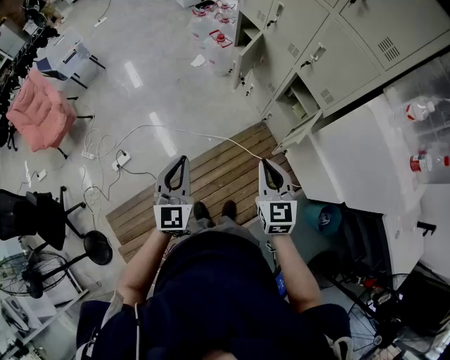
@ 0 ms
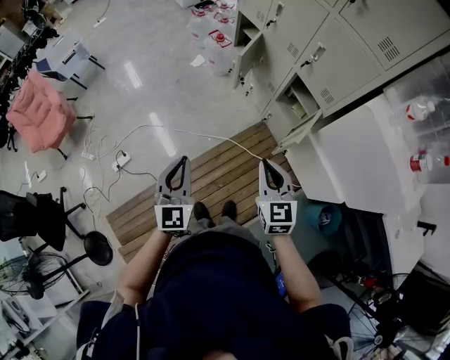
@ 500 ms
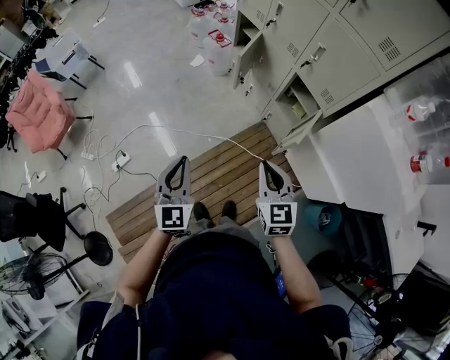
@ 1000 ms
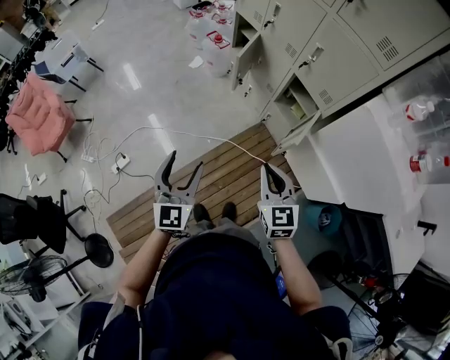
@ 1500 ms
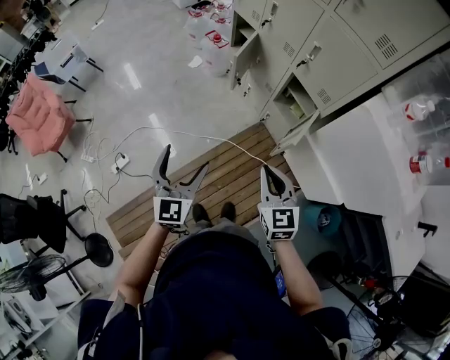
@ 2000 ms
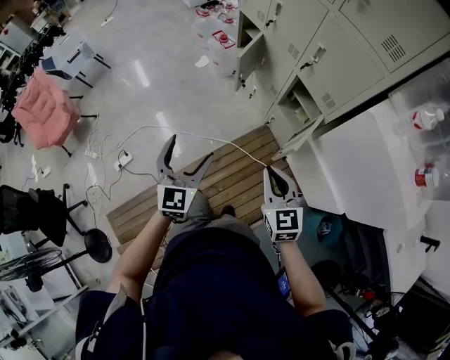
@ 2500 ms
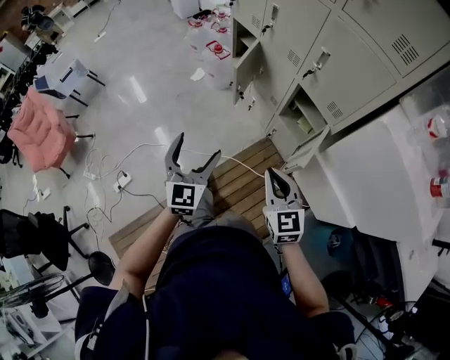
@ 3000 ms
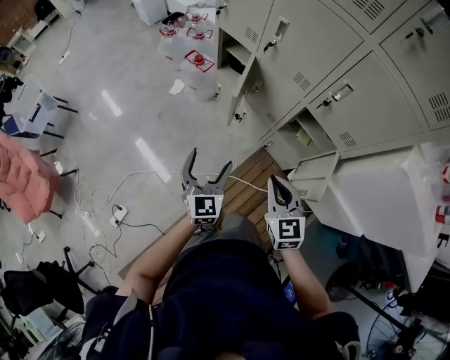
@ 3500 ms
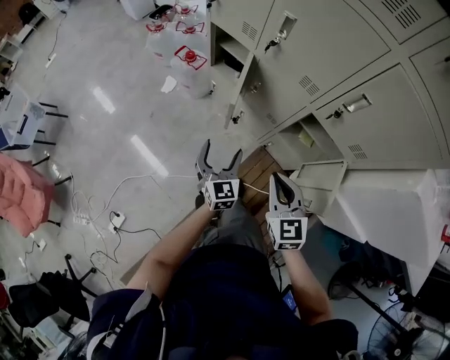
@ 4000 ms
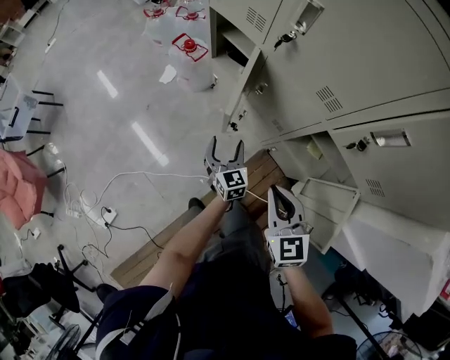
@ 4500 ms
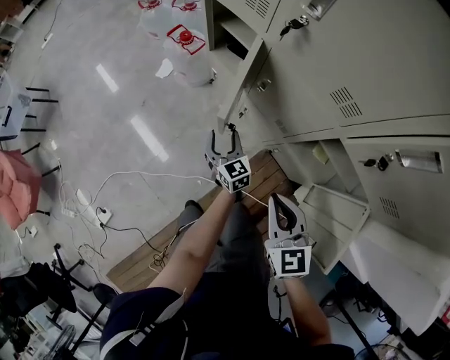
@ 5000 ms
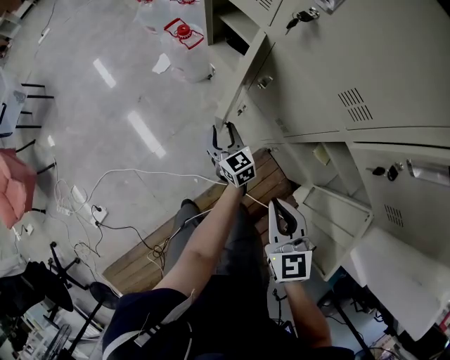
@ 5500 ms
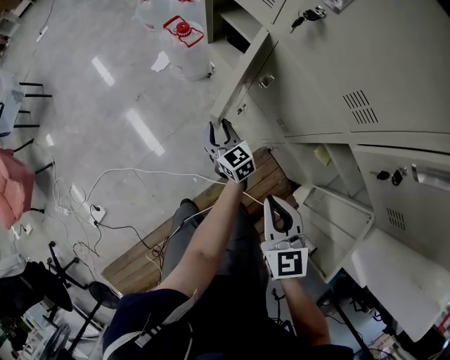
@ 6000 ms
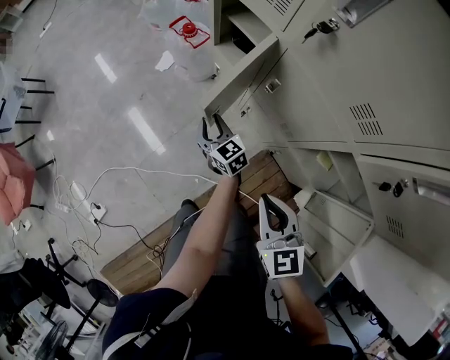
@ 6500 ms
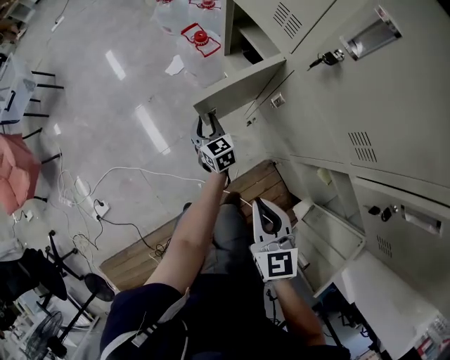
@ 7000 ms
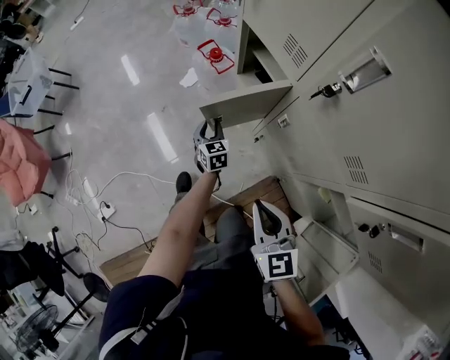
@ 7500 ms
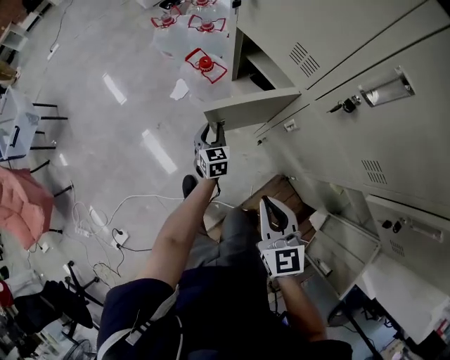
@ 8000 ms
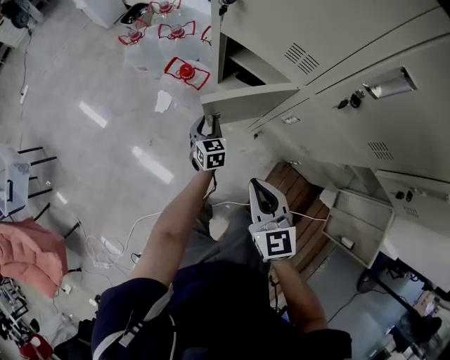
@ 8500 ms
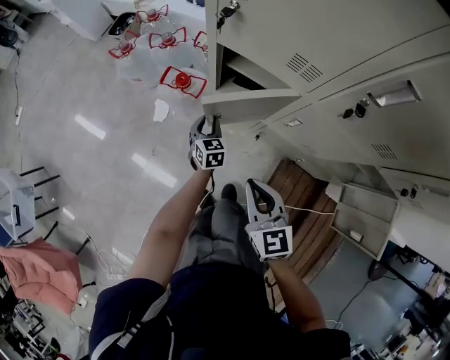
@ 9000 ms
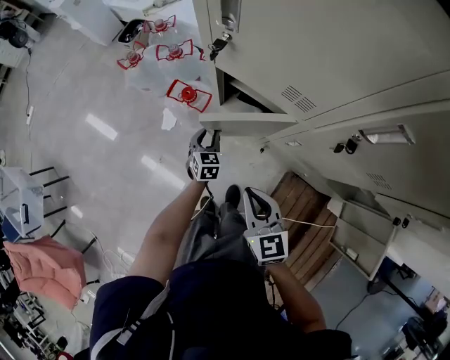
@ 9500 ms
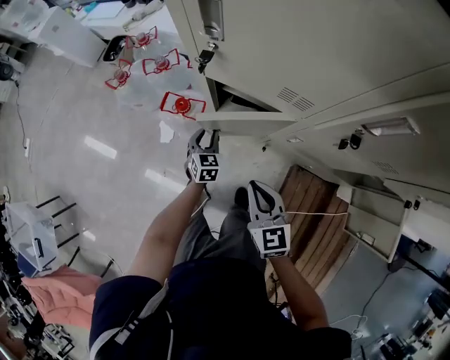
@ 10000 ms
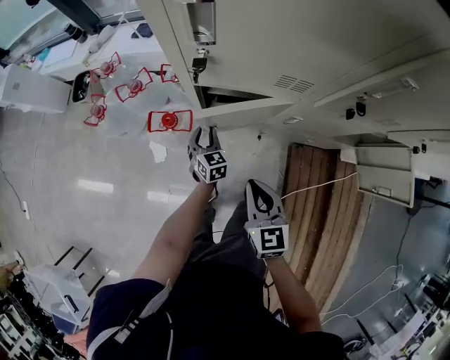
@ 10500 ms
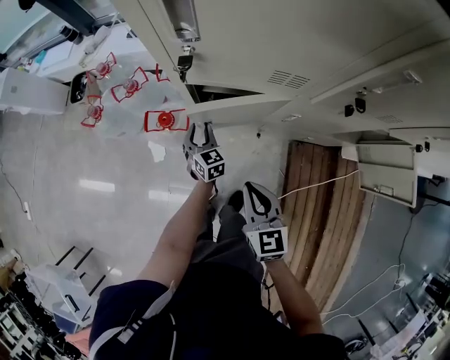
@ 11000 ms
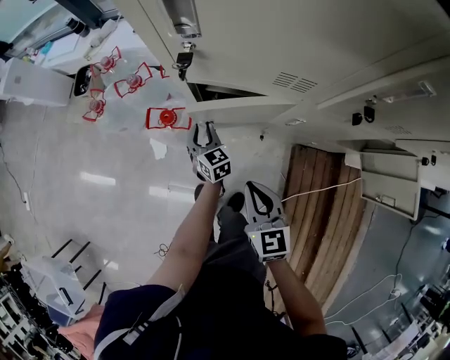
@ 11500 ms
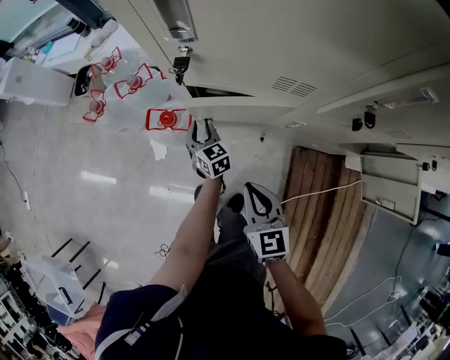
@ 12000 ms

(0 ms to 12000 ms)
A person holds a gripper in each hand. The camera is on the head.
0 ms - 2000 ms: The left gripper moves approximately 5 cm, and opens its fingers.
2000 ms - 4000 ms: The grippers both shift forward and downward by some 40 cm.
4000 ms - 6000 ms: The left gripper is displaced downward and forward by roughly 30 cm, changes its angle by roughly 40 degrees, and closes its fingers. The right gripper is displaced downward and forward by some 20 cm.
6000 ms - 8000 ms: Both grippers travel together forward, some 15 cm. The left gripper swivels about 30 degrees.
8000 ms - 10000 ms: The right gripper ends up approximately 20 cm from where it was, and turns by roughly 20 degrees. Meanwhile the left gripper ends up about 15 cm from where it was, and changes its angle by approximately 40 degrees.
10000 ms - 12000 ms: The left gripper moves forward, some 5 cm.

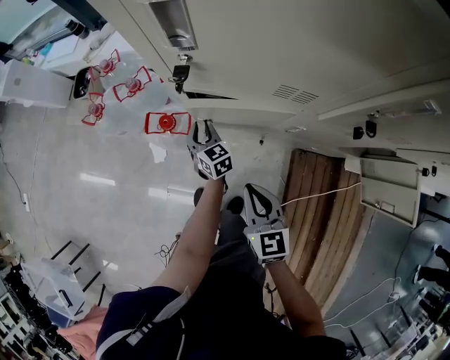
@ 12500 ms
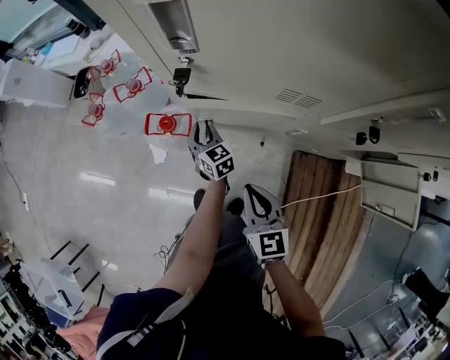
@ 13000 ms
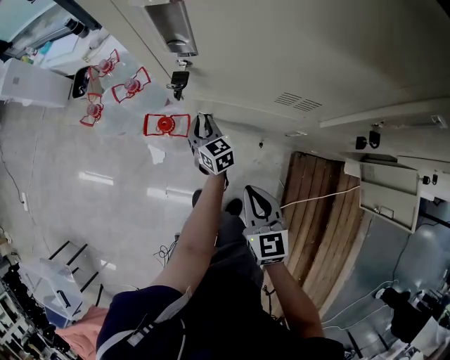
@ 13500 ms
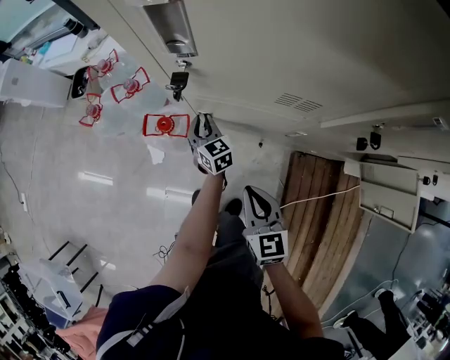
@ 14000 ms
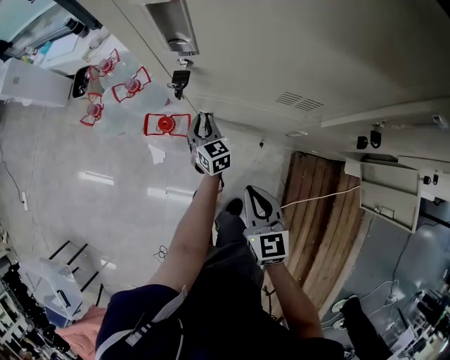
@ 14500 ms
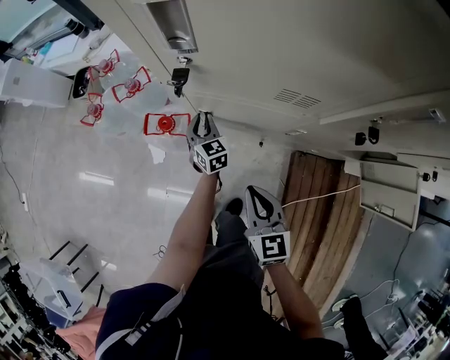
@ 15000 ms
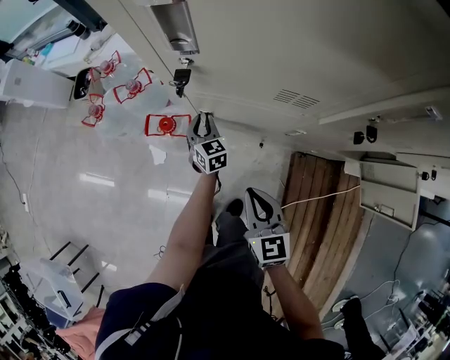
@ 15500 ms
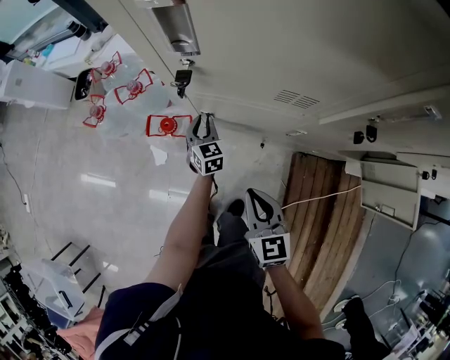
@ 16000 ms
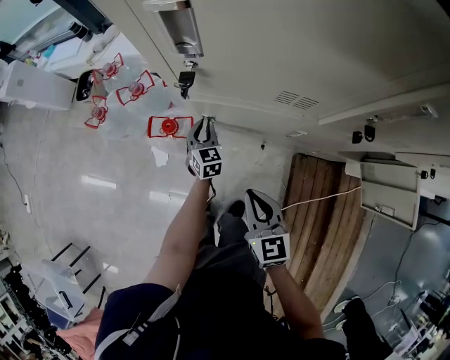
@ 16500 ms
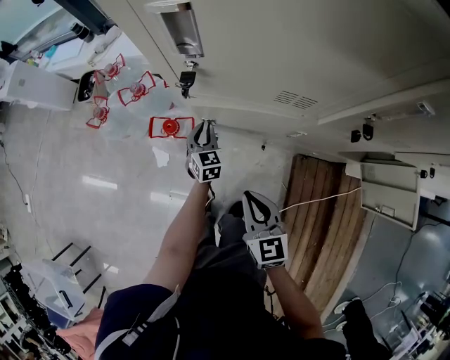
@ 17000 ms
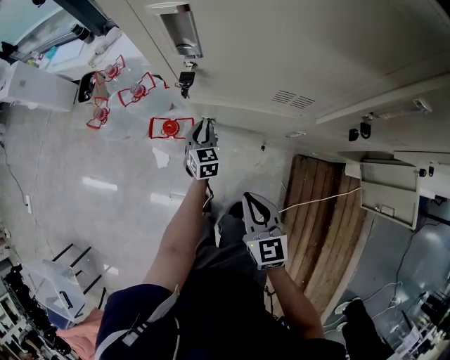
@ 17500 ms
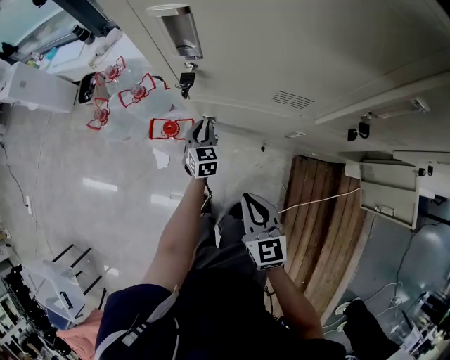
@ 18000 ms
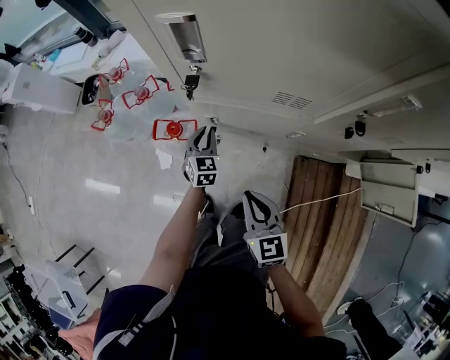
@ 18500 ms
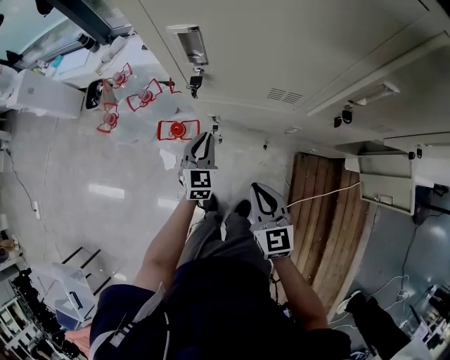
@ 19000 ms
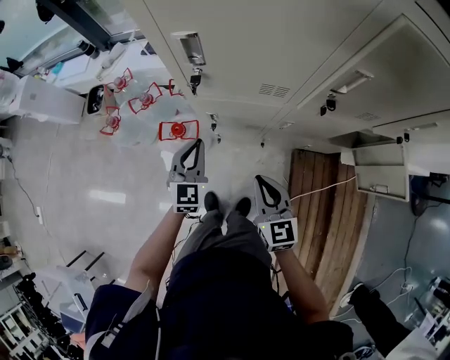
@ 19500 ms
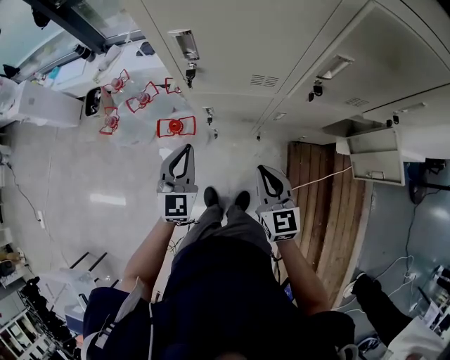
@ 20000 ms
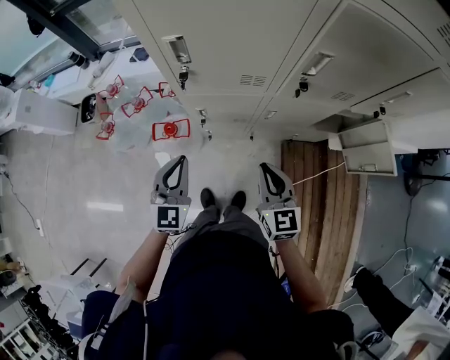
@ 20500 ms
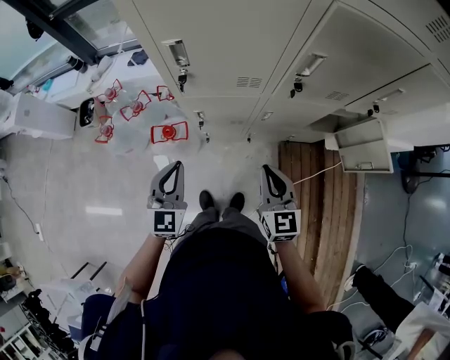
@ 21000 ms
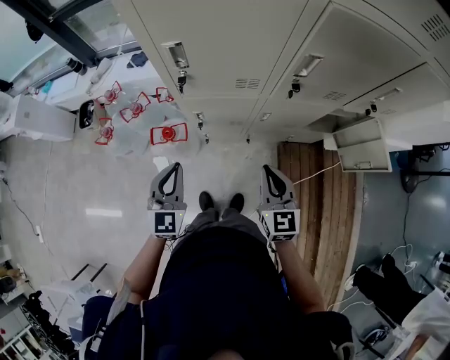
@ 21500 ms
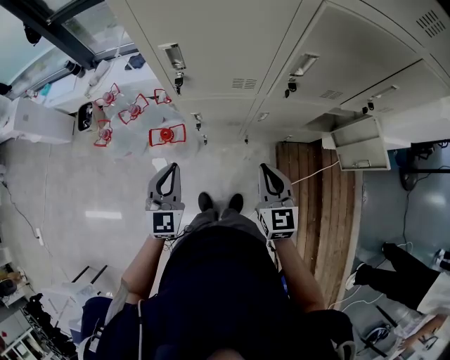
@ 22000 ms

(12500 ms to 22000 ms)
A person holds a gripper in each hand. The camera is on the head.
12500 ms - 16500 ms: The grippers make only small movements.
16500 ms - 18000 ms: The two grippers keep their place.
18000 ms - 20000 ms: The right gripper heads upward, covering about 10 cm, while the left gripper heads upward and backward, covering roughly 30 cm, and rotates some 30 degrees.
20000 ms - 22000 ms: The right gripper ends up approximately 5 cm from where it was. Meanwhile the left gripper is displaced backward by approximately 5 cm.

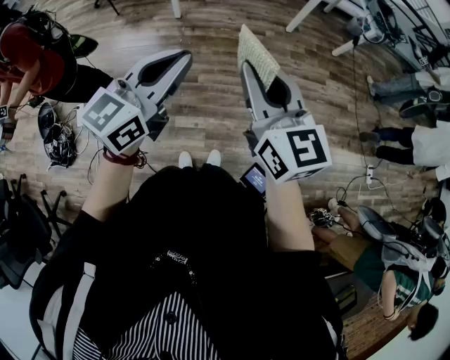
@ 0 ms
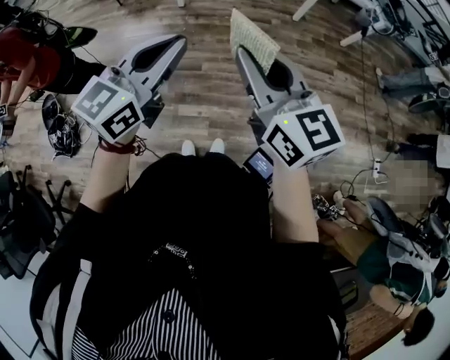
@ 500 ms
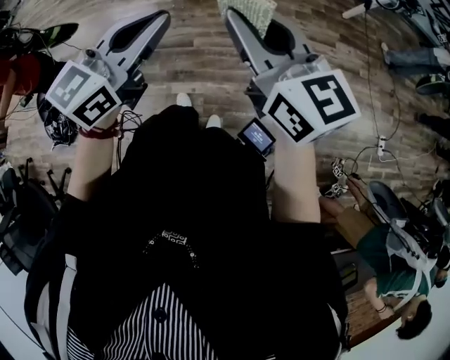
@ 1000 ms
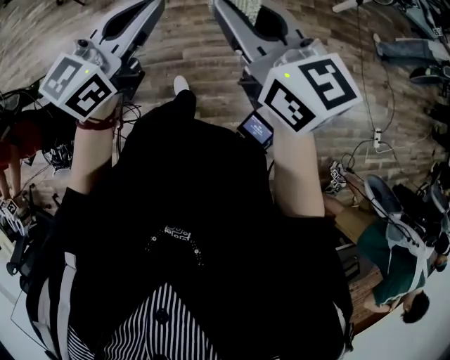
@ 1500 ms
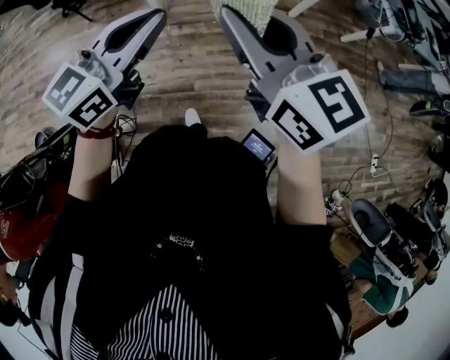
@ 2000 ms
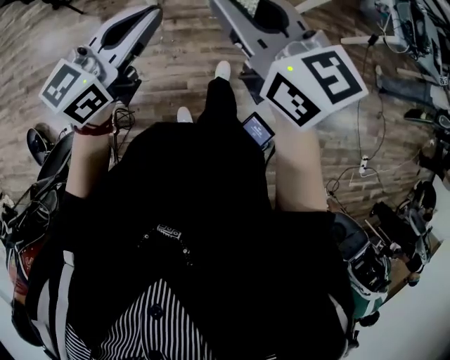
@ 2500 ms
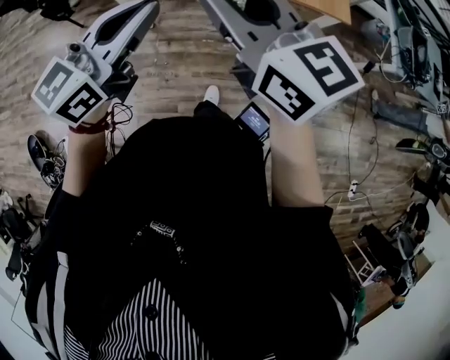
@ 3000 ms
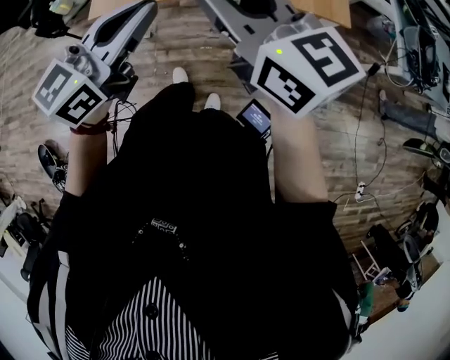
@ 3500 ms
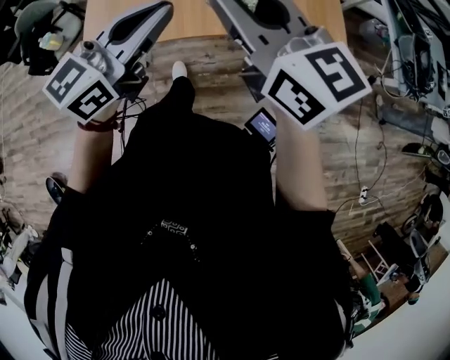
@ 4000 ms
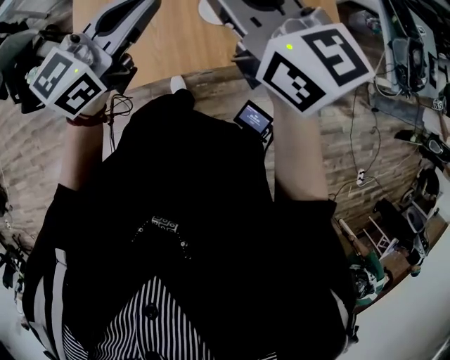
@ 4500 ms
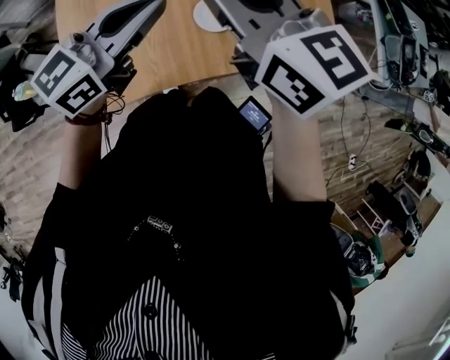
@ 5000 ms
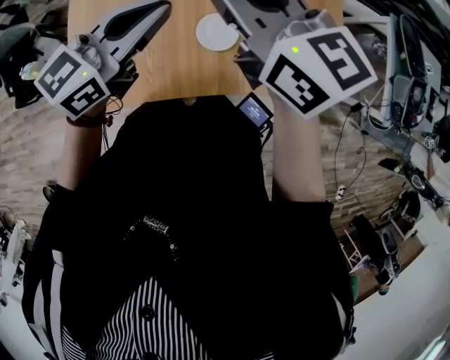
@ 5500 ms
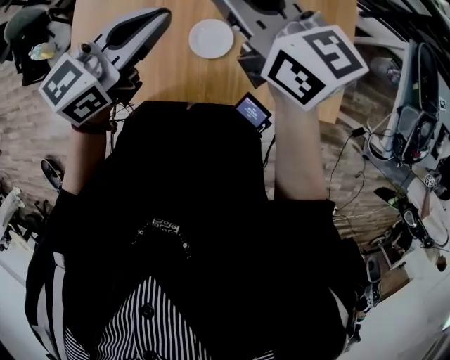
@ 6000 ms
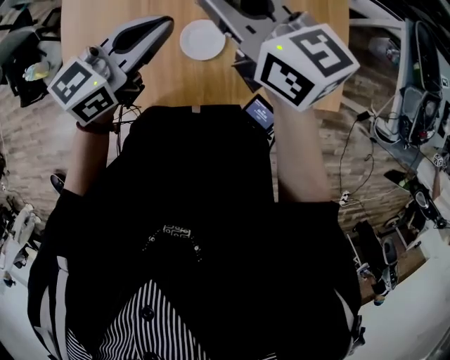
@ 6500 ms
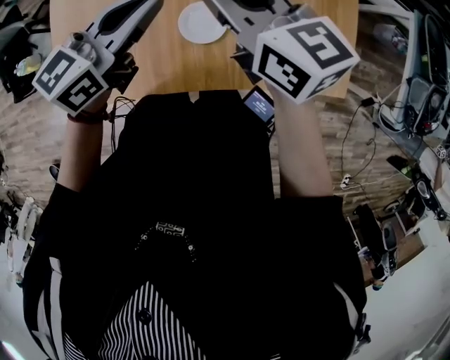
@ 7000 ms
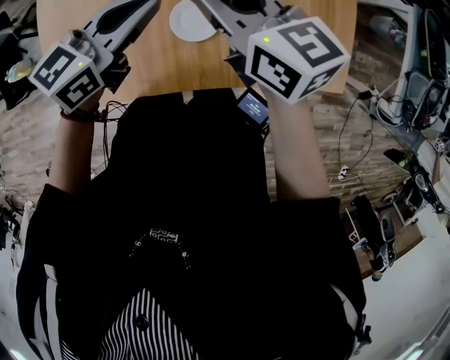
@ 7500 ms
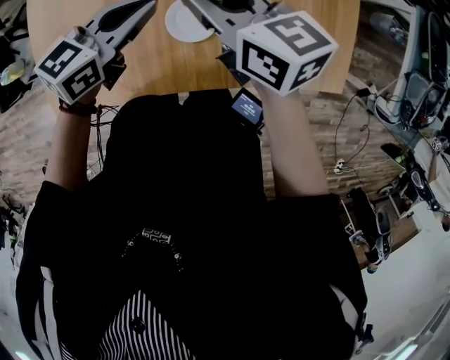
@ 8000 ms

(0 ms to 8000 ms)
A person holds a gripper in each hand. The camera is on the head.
0 ms - 2000 ms: Both grippers are carried forward, roughly 40 cm.
2000 ms - 4000 ms: The pair of grippers is taken forward, about 50 cm.
4000 ms - 6000 ms: Both grippers move forward, about 35 cm.
6000 ms - 8000 ms: The grippers both shift downward by some 20 cm.
